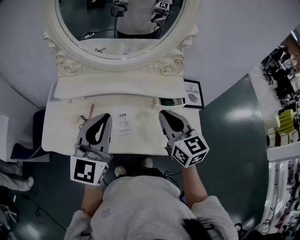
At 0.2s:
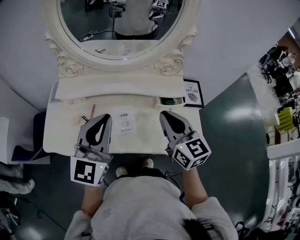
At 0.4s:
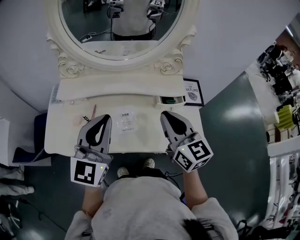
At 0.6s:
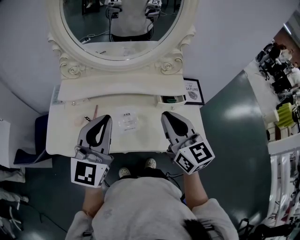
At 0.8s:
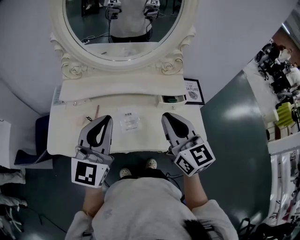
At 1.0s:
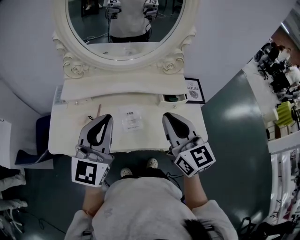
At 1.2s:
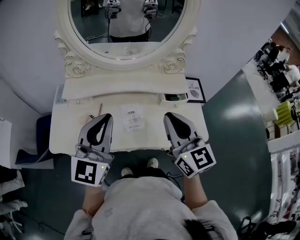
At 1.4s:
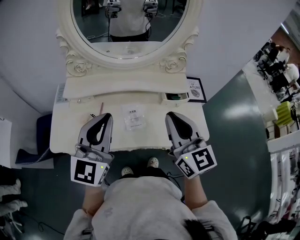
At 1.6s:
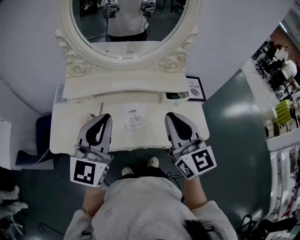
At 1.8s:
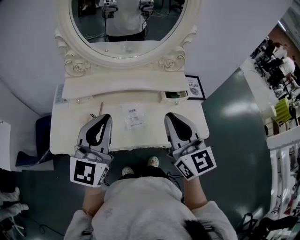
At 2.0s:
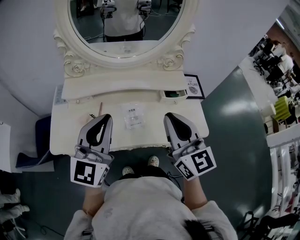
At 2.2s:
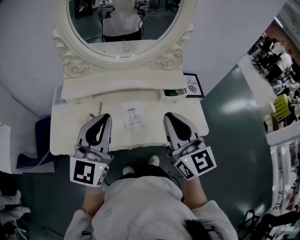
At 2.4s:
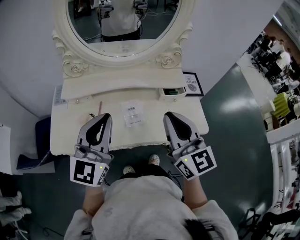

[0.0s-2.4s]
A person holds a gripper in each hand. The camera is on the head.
0.0s to 1.2s: The left gripper heads to the left, covering about 5 cm, while the right gripper moves backward, upward and to the left, roughly 10 cm.
1.2s to 2.4s: The grippers move only a little.

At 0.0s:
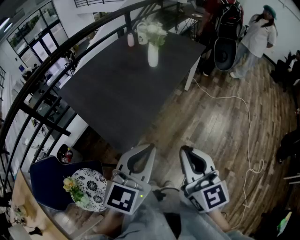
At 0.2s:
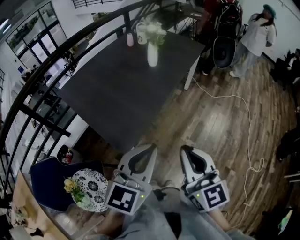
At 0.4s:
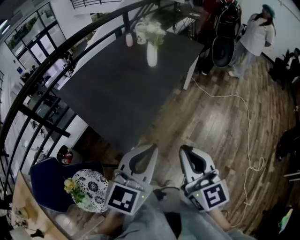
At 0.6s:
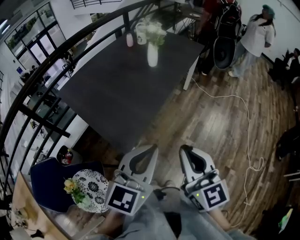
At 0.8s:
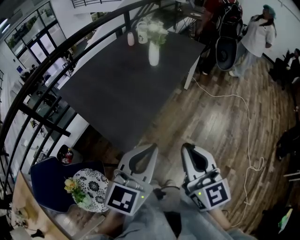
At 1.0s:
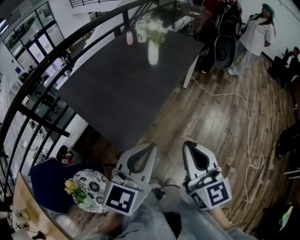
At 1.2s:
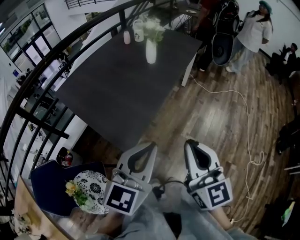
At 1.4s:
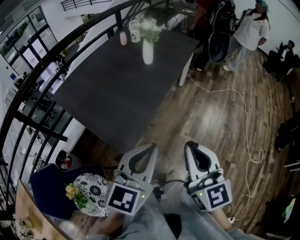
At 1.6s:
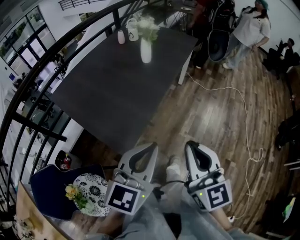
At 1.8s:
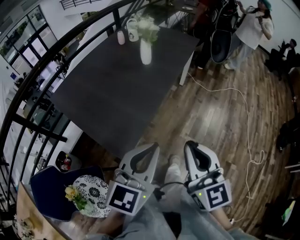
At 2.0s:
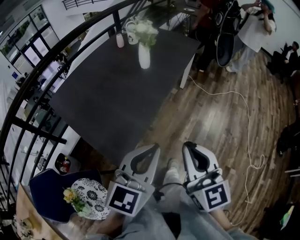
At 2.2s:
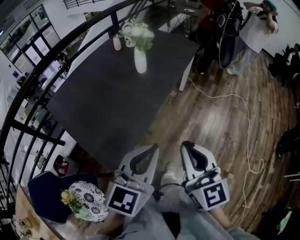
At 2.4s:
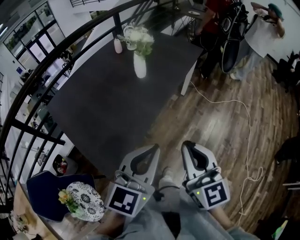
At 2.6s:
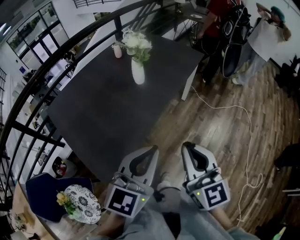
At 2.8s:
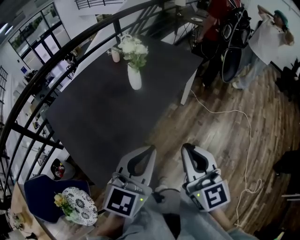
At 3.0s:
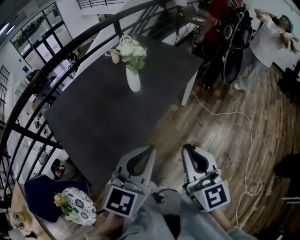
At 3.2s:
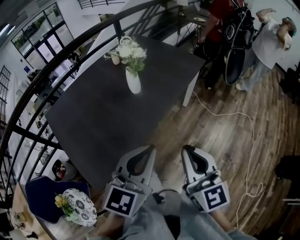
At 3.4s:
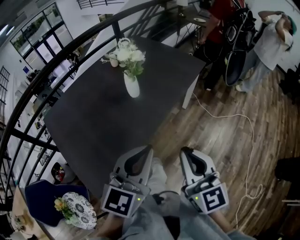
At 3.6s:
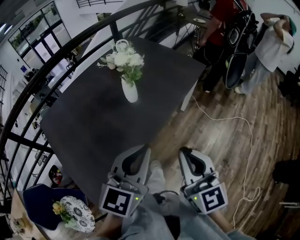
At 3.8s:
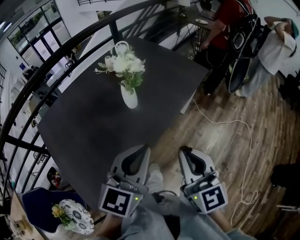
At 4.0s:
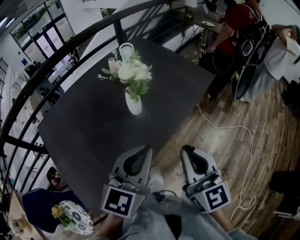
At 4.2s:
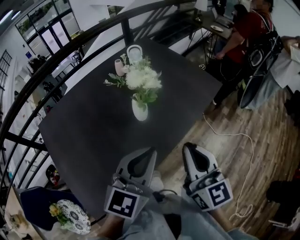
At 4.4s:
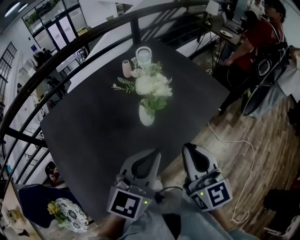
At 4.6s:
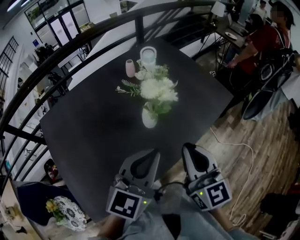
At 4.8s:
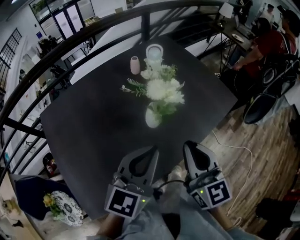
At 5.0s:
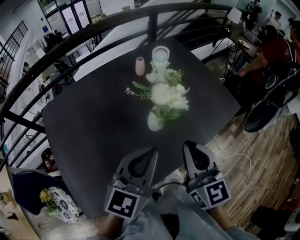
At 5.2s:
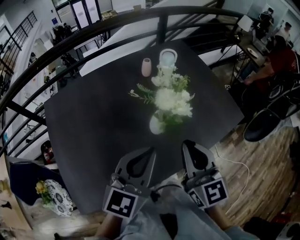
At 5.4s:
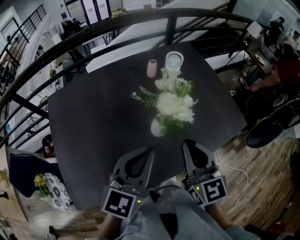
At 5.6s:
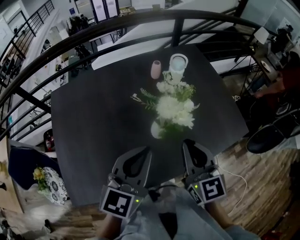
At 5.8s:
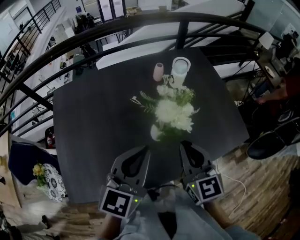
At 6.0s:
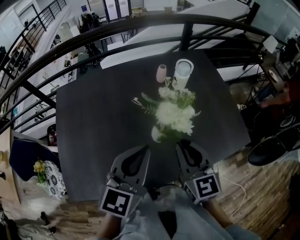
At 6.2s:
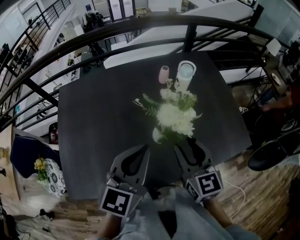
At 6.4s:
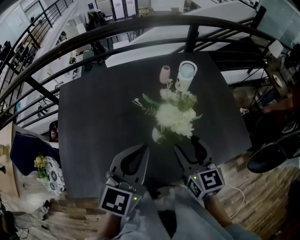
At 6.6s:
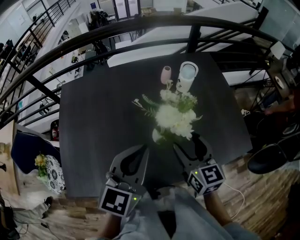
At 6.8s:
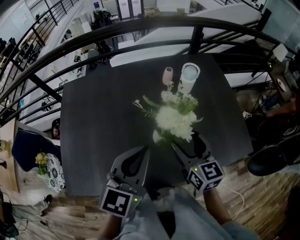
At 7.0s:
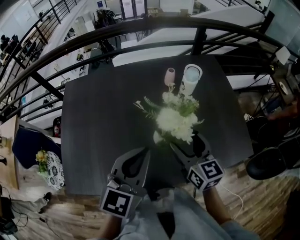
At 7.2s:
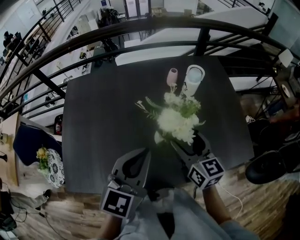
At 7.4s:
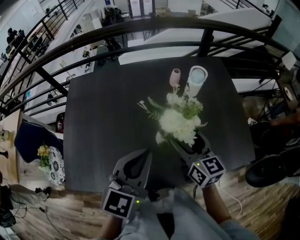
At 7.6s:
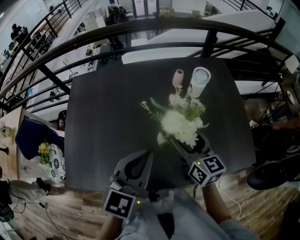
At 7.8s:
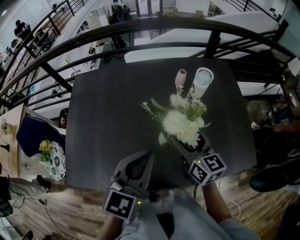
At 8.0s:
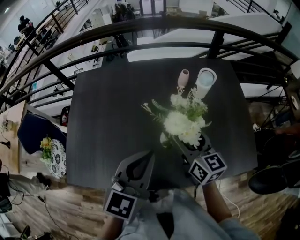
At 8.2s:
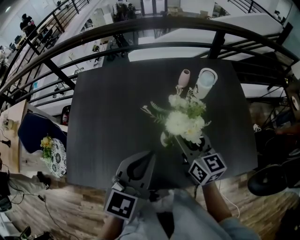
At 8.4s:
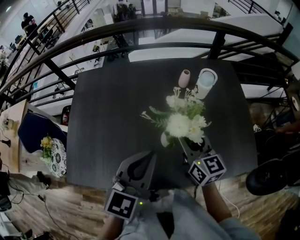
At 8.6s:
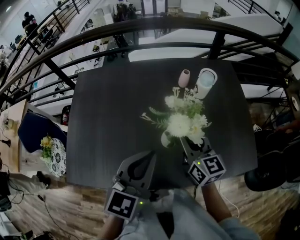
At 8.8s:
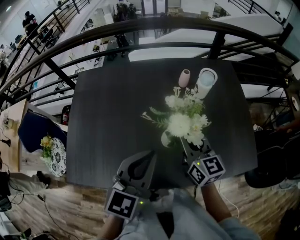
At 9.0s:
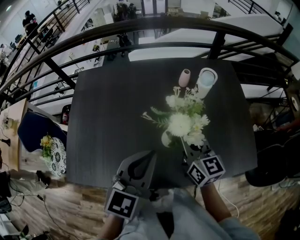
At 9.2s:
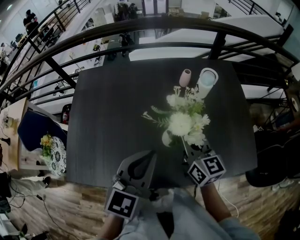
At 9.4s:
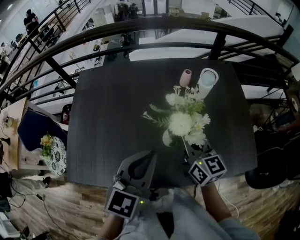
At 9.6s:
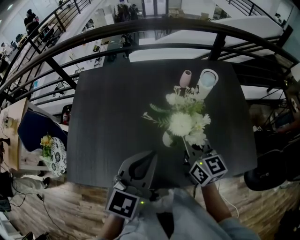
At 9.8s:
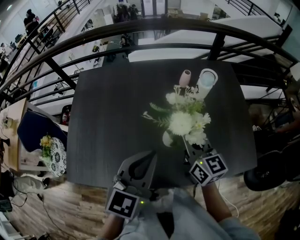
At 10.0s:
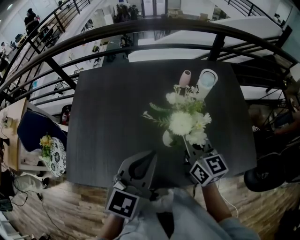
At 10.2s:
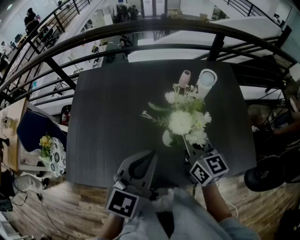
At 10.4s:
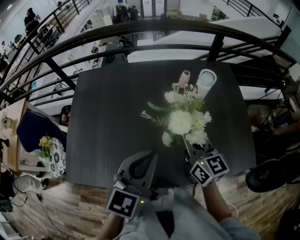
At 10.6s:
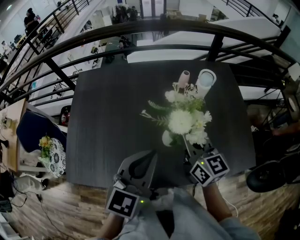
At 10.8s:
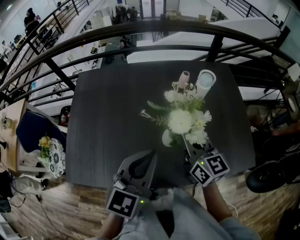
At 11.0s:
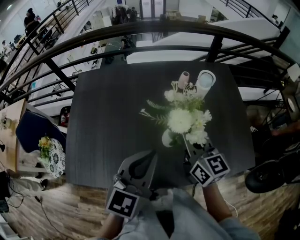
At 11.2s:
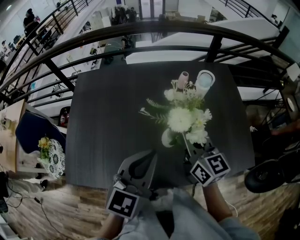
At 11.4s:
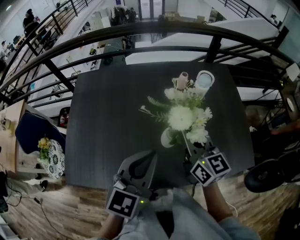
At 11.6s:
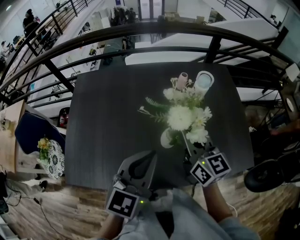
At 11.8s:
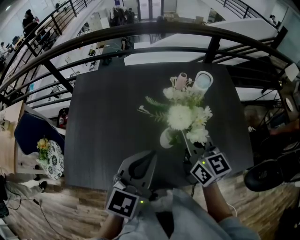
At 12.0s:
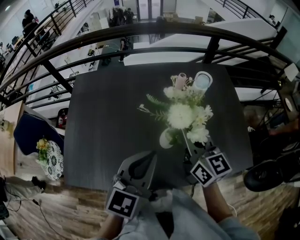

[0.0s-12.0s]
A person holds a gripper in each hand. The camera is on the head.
0.0s to 1.6s: The grippers move only a little.
1.6s to 3.0s: Both grippers move forward and to the right, some 25 cm.
3.0s to 4.4s: Both grippers move forward, some 25 cm.
4.4s to 6.0s: The left gripper shifts by approximately 10 cm, and changes its angle by about 30 degrees; the right gripper ends up about 15 cm from where it was, and rotates roughly 30 degrees.
6.0s to 7.6s: The right gripper is displaced forward by roughly 10 cm, changes its angle by about 20 degrees, and opens its fingers.
7.6s to 9.0s: The right gripper closes up.
9.0s to 10.4s: The grippers stay close to where they were, moving slightly.
10.4s to 12.0s: The grippers move only a little.

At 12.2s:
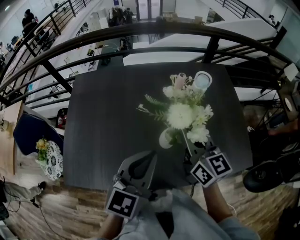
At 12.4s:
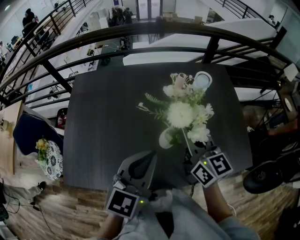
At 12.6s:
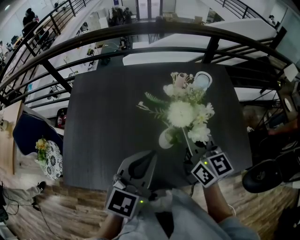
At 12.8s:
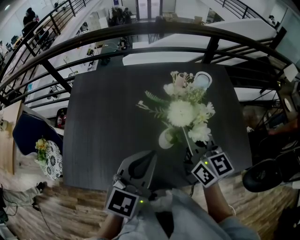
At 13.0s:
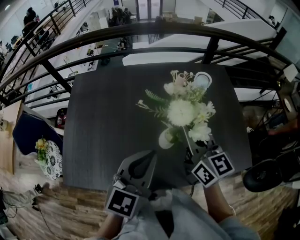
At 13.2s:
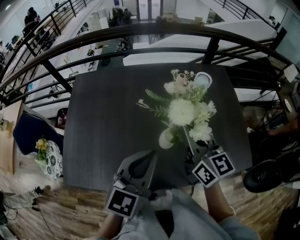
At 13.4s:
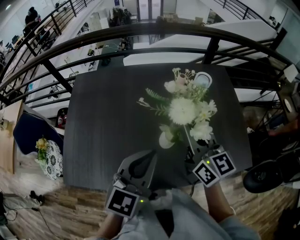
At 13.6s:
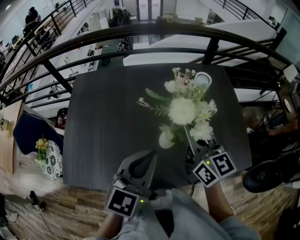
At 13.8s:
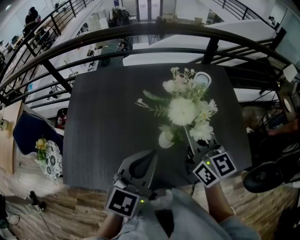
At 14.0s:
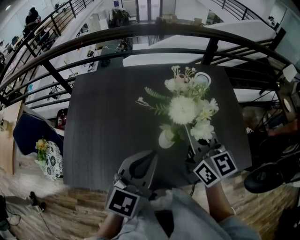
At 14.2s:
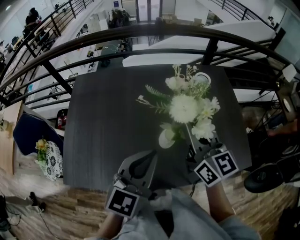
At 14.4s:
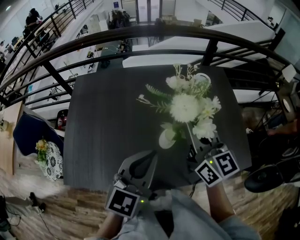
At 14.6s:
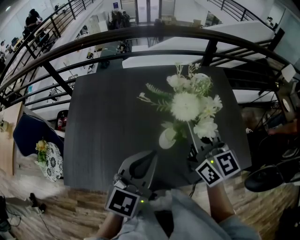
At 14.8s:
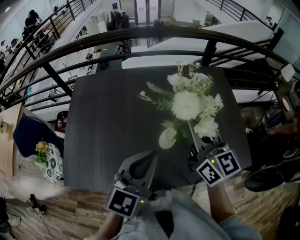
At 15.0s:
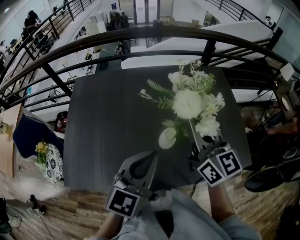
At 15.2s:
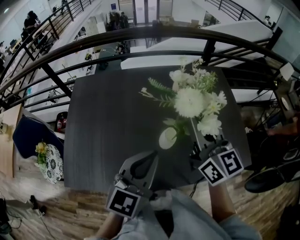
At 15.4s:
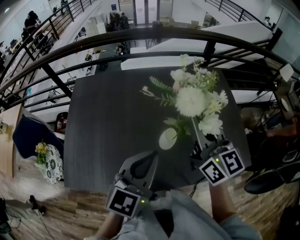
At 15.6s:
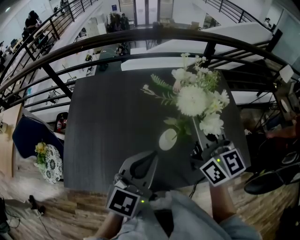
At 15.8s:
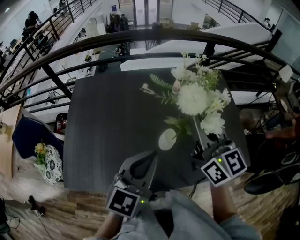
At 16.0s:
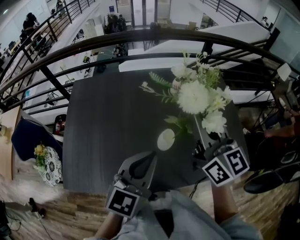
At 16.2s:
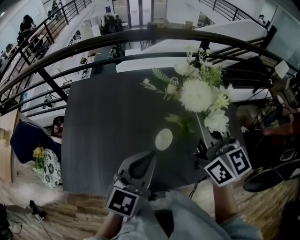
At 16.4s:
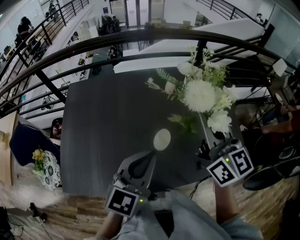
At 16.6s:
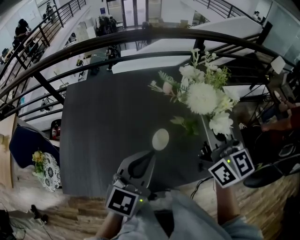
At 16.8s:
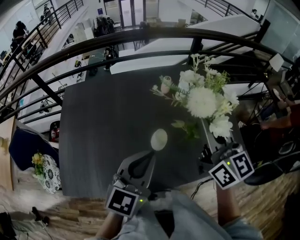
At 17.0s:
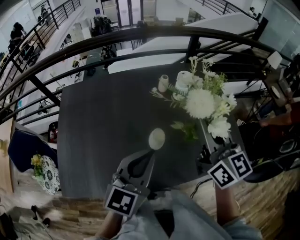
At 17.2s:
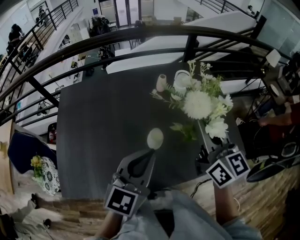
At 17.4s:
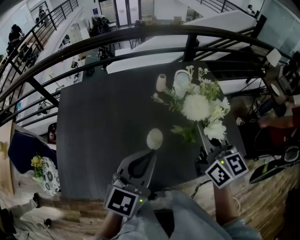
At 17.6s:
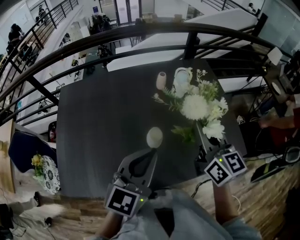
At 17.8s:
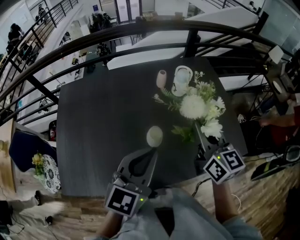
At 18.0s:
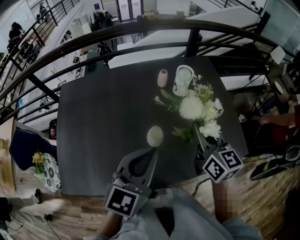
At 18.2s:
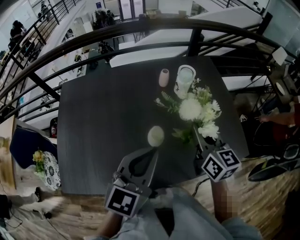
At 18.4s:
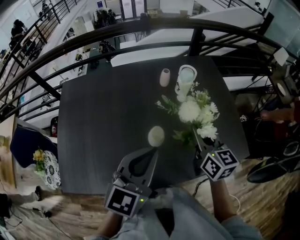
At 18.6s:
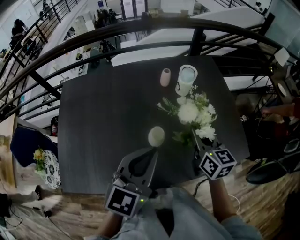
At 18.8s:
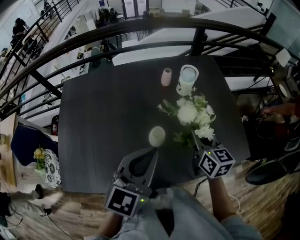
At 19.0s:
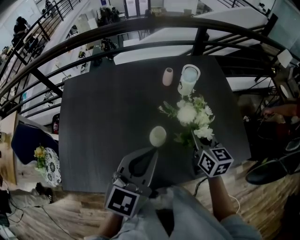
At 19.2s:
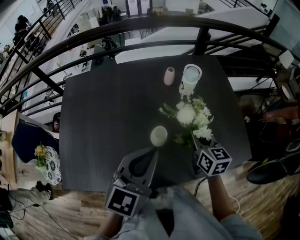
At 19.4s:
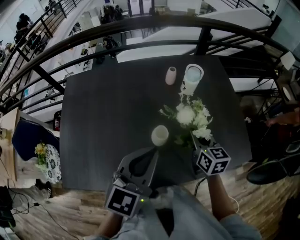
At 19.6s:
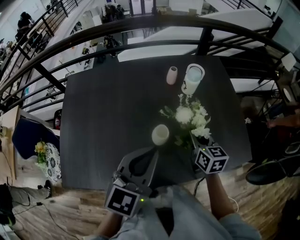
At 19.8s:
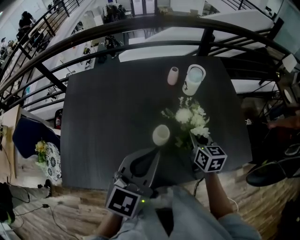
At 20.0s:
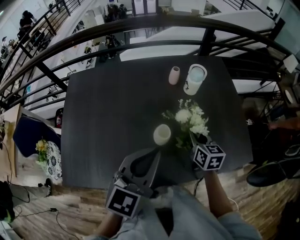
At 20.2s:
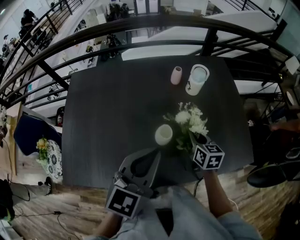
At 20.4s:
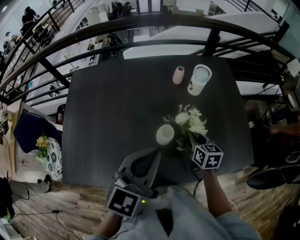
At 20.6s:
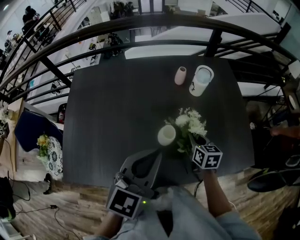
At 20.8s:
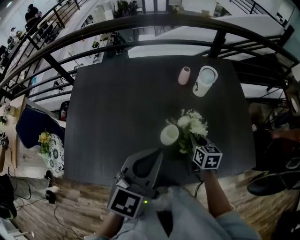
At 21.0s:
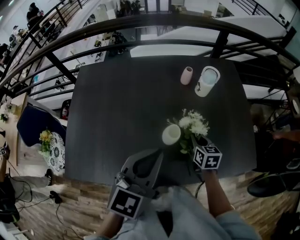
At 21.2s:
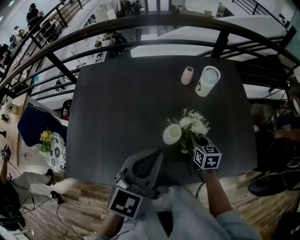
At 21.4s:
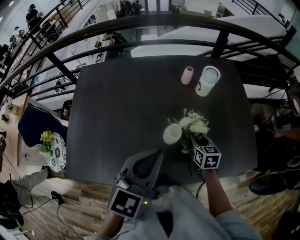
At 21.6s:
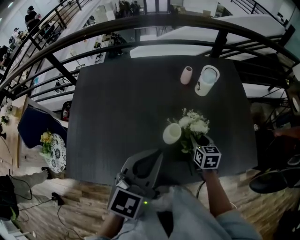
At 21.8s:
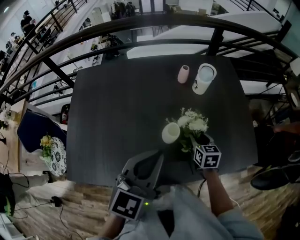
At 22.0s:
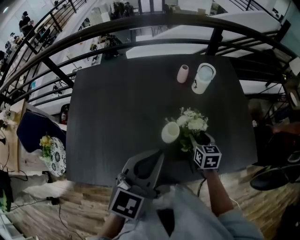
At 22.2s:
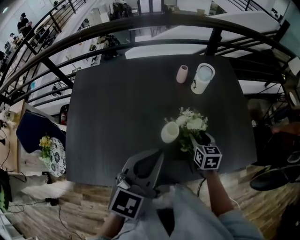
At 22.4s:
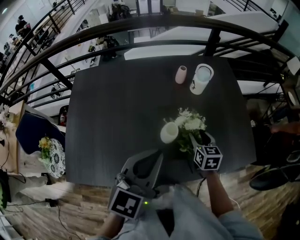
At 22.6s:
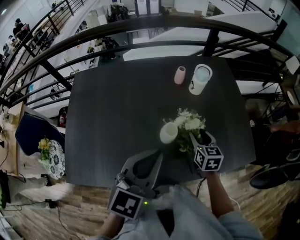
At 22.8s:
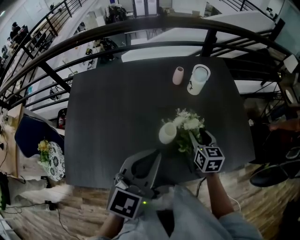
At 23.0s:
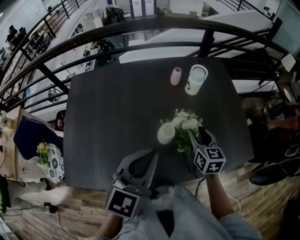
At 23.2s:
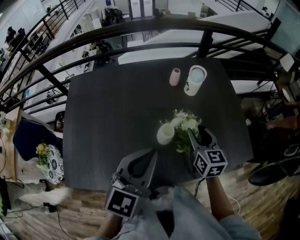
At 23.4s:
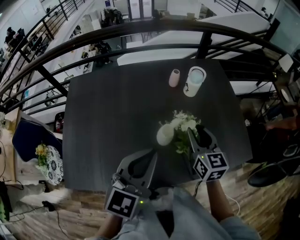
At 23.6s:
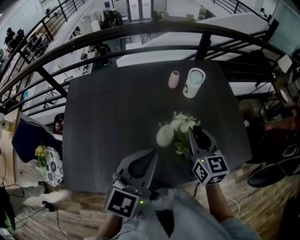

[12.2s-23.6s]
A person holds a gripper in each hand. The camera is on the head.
12.2s to 13.6s: The grippers move only a little.
13.6s to 15.0s: There are only small adjustments of the grippers.
15.0s to 16.4s: There are only small adjustments of the grippers.
16.4s to 17.8s: The right gripper is displaced downward and to the right by some 10 cm. The left gripper changes place by some 5 cm.
17.8s to 19.4s: The right gripper is displaced downward by approximately 15 cm.
19.4s to 20.8s: The right gripper moves downward, approximately 10 cm.
20.8s to 22.2s: The right gripper opens.
22.2s to 23.6s: The right gripper shifts approximately 15 cm upward, changes its angle by some 20 degrees, and closes its fingers.
